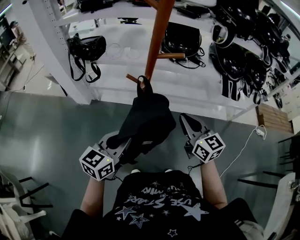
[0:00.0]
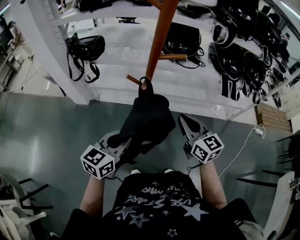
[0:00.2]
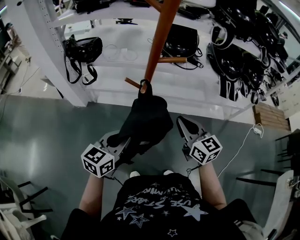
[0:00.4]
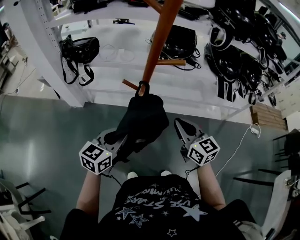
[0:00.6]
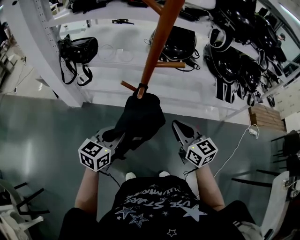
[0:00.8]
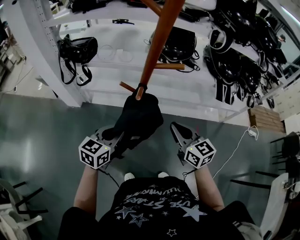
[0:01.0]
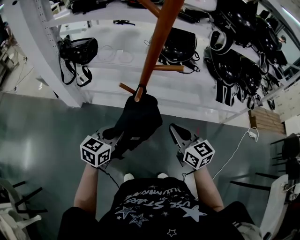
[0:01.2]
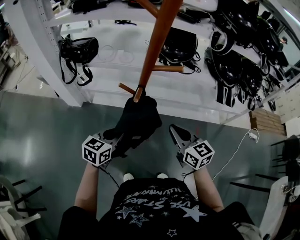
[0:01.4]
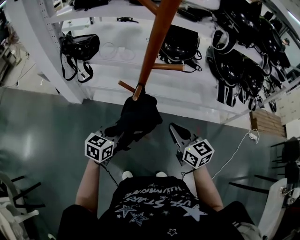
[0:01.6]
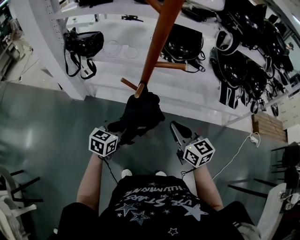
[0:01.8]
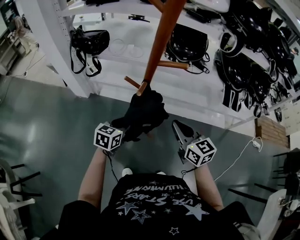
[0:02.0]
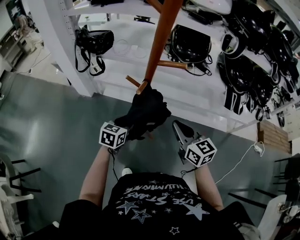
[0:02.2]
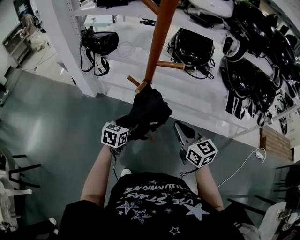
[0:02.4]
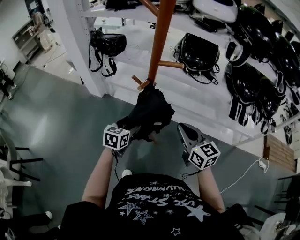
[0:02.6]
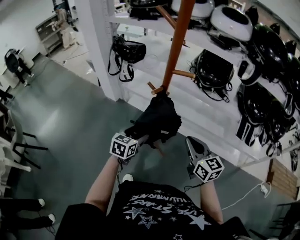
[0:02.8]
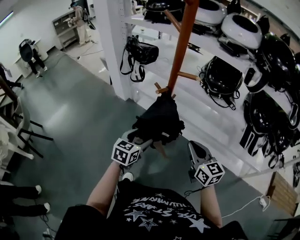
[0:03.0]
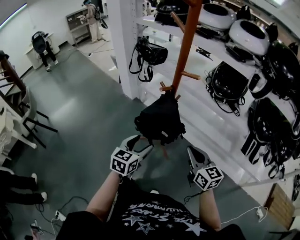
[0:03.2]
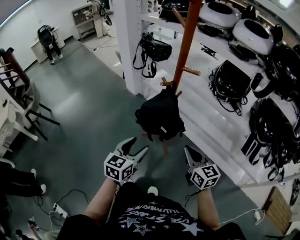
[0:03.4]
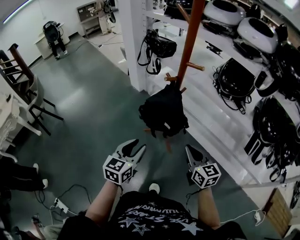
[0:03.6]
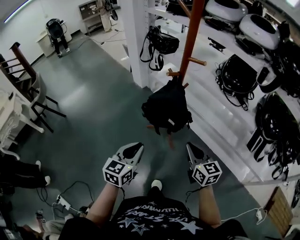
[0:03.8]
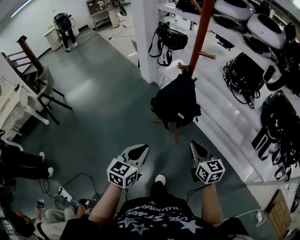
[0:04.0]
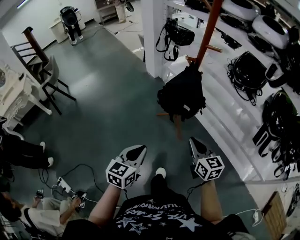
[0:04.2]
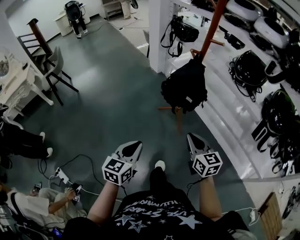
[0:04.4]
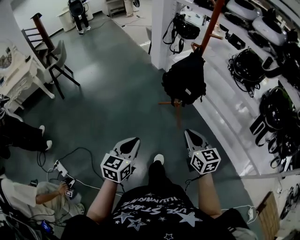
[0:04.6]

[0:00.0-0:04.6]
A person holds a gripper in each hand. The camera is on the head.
0:00.0 to 0:01.6: The left gripper is displaced downward and forward by roughly 15 cm, while the right gripper ends up approximately 5 cm from where it was.
0:01.6 to 0:03.0: The left gripper is displaced backward and to the right by about 10 cm, rotates approximately 30 degrees, and opens up. Meanwhile the right gripper shifts roughly 5 cm to the right.
0:03.0 to 0:04.6: The left gripper moves backward, about 40 cm, changes its angle by about 30 degrees, and closes its fingers, while the right gripper travels backward by some 25 cm, and rotates some 20 degrees.

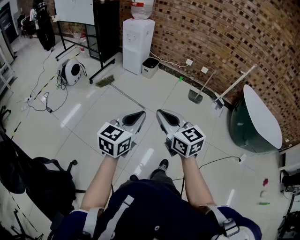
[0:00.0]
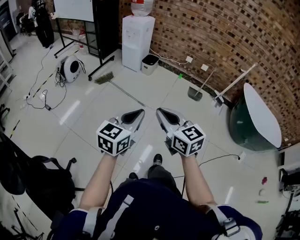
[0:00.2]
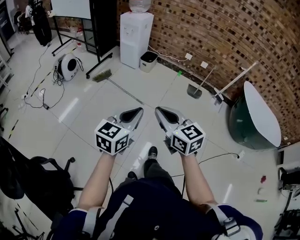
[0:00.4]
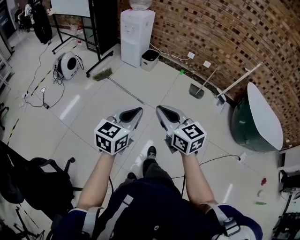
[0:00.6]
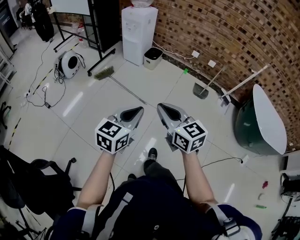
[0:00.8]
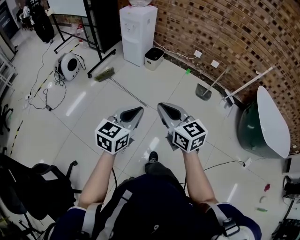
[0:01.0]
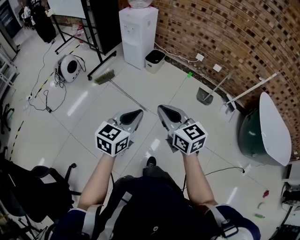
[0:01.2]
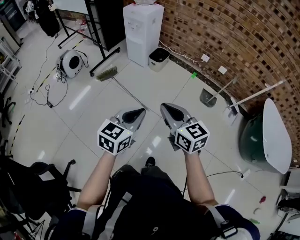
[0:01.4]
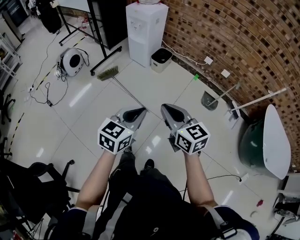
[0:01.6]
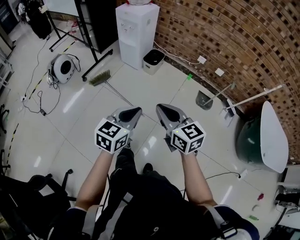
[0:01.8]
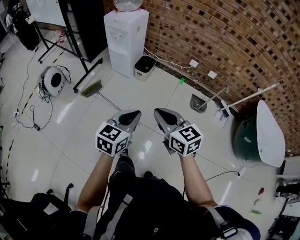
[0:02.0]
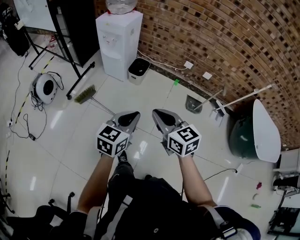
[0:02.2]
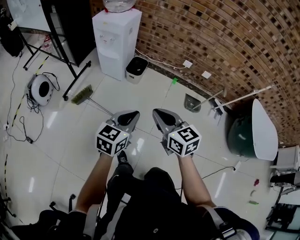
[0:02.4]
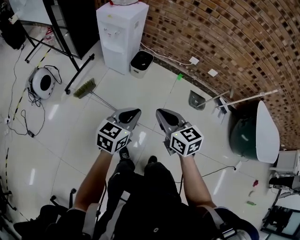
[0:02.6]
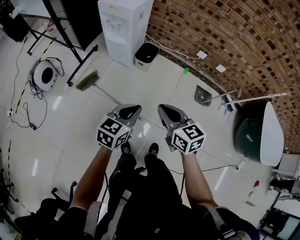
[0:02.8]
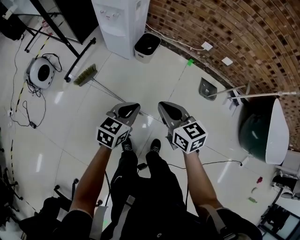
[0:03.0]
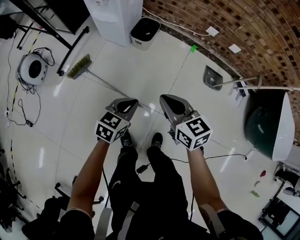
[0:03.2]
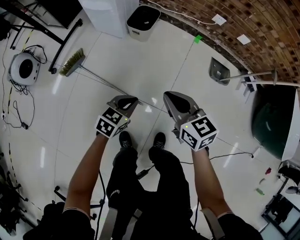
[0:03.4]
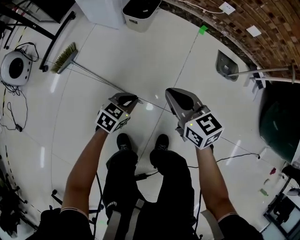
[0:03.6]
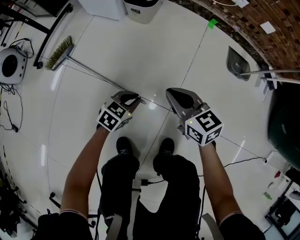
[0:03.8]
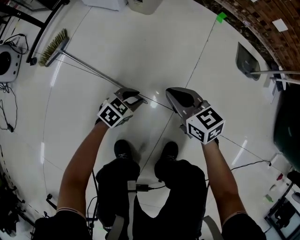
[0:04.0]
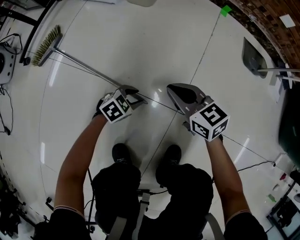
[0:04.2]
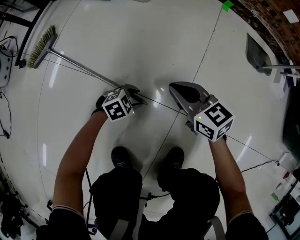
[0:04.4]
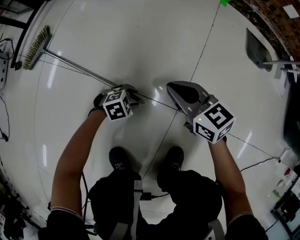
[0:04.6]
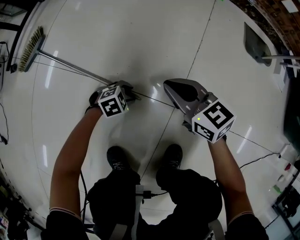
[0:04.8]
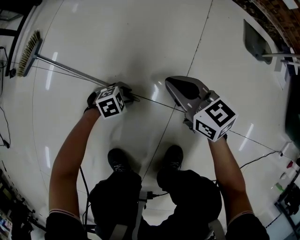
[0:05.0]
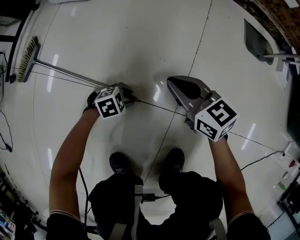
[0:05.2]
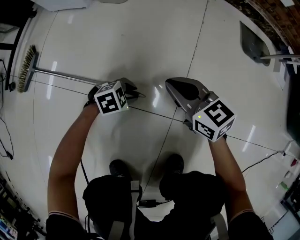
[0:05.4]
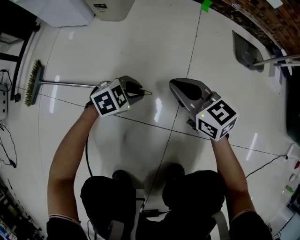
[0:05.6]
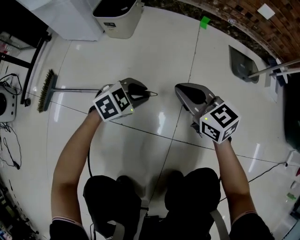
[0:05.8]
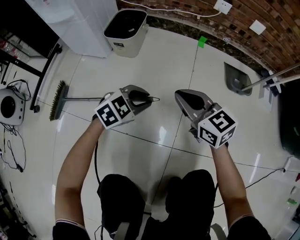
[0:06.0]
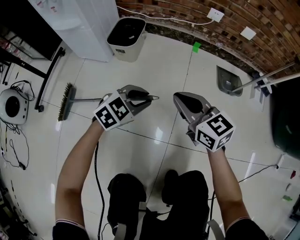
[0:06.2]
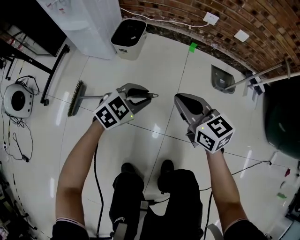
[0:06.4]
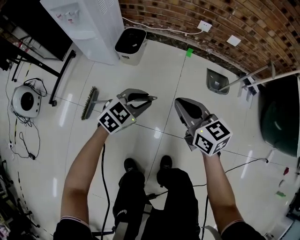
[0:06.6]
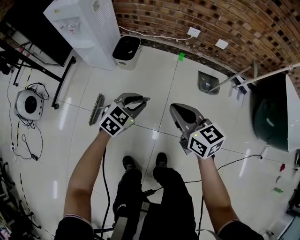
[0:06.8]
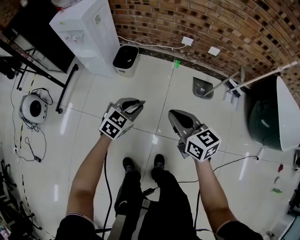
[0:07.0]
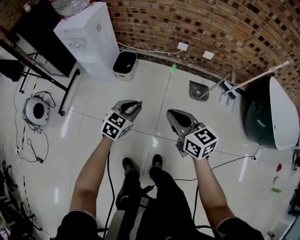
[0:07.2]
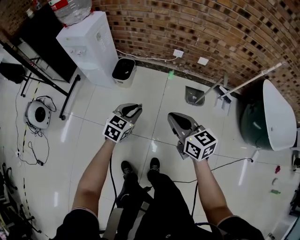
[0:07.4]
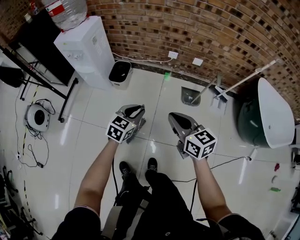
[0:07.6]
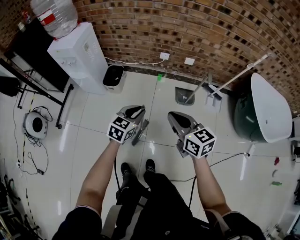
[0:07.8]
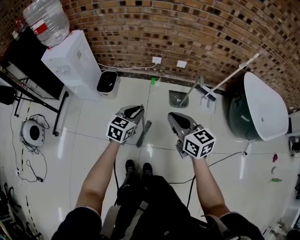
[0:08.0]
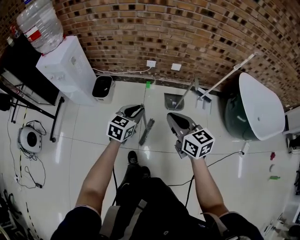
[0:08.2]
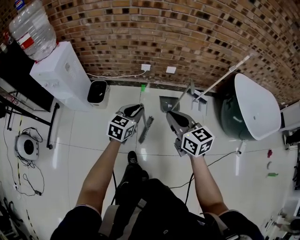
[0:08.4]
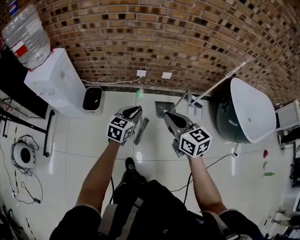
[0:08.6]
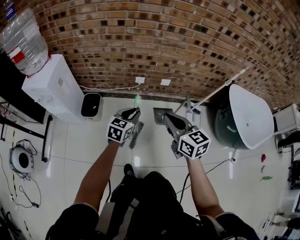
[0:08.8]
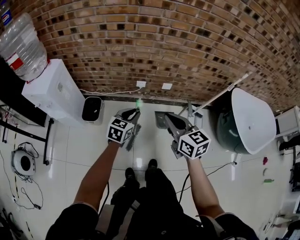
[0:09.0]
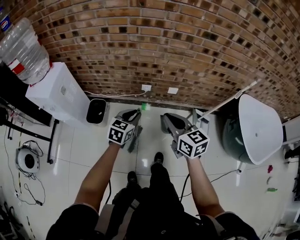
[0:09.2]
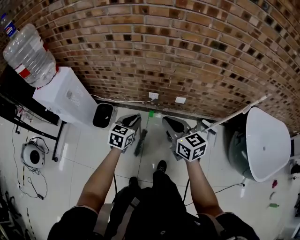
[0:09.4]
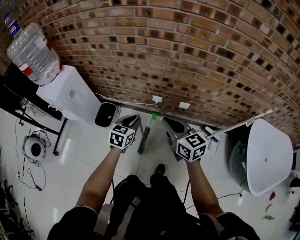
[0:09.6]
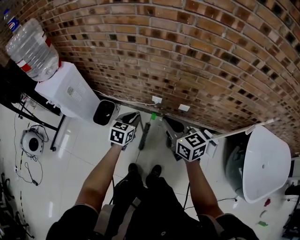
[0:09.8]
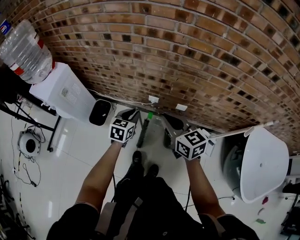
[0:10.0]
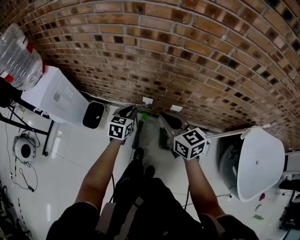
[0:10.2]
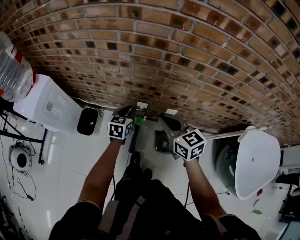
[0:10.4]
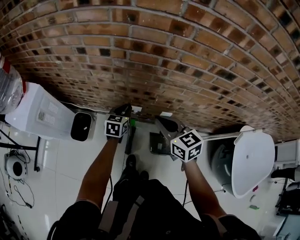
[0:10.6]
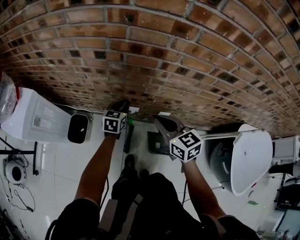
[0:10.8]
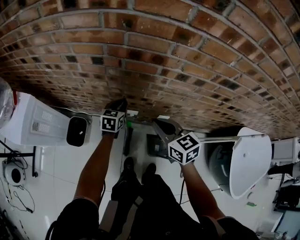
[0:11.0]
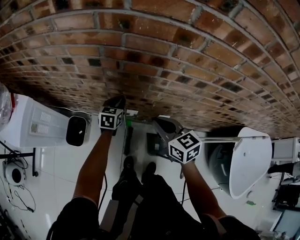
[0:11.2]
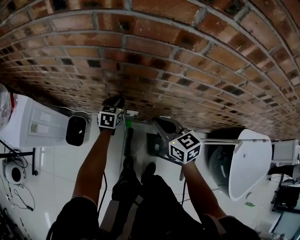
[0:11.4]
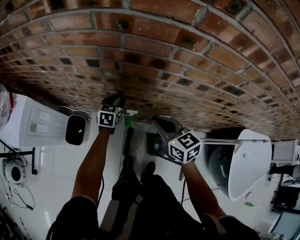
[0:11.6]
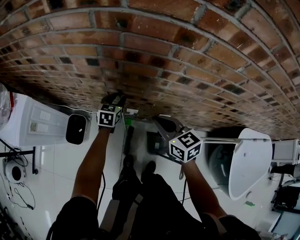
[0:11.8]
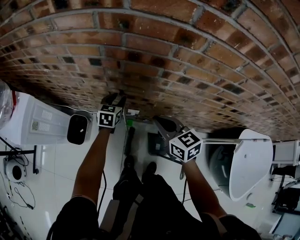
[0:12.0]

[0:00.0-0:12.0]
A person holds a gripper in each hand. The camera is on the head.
0:00.0 to 0:01.6: The two grippers go roughly 30 cm forward.
0:01.6 to 0:03.0: The grippers both shift forward and downward by approximately 30 cm.
0:03.0 to 0:04.4: The grippers both shift downward by approximately 60 cm. The left gripper swivels approximately 50 degrees, and opens its fingers.
0:04.4 to 0:06.0: The left gripper moves upward, about 25 cm, turns by some 20 degrees, and closes up, while the right gripper is displaced upward by roughly 15 cm.
0:06.0 to 0:07.6: Both grippers travel together upward, roughly 50 cm. The left gripper rotates some 30 degrees.
0:07.6 to 0:09.0: Both grippers travel together forward, approximately 20 cm.
0:09.0 to 0:10.4: Both grippers move forward, some 25 cm. The left gripper swivels approximately 20 degrees.
0:10.4 to 0:12.0: The right gripper goes some 10 cm forward. Meanwhile the left gripper goes some 15 cm forward, and opens.

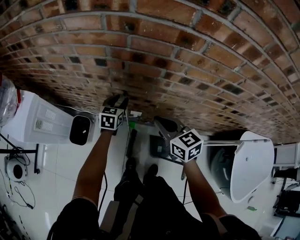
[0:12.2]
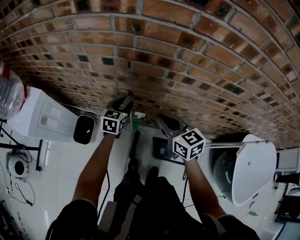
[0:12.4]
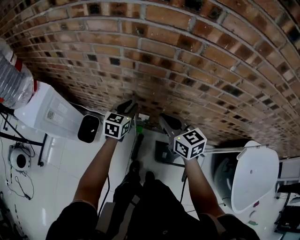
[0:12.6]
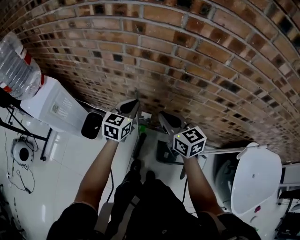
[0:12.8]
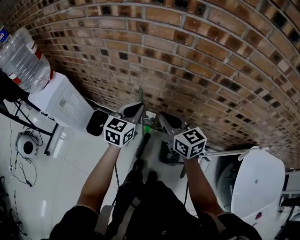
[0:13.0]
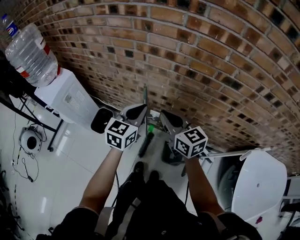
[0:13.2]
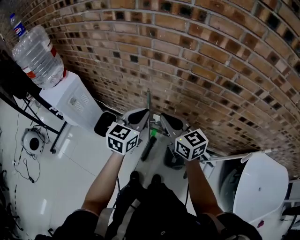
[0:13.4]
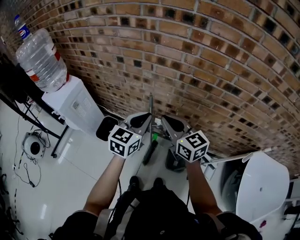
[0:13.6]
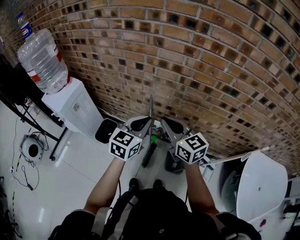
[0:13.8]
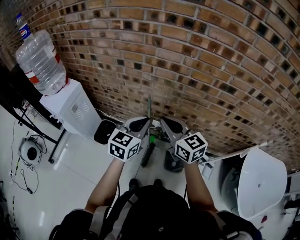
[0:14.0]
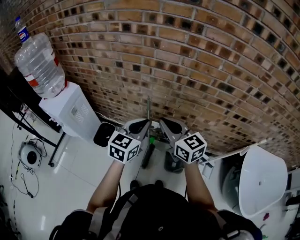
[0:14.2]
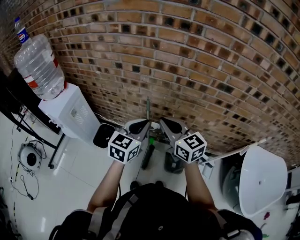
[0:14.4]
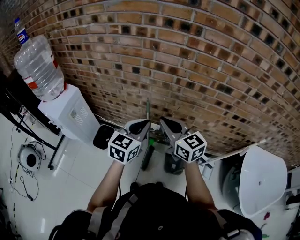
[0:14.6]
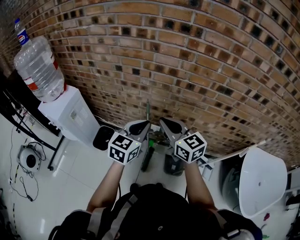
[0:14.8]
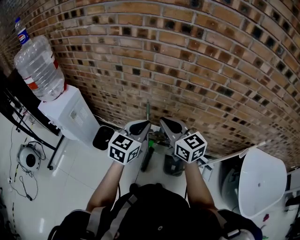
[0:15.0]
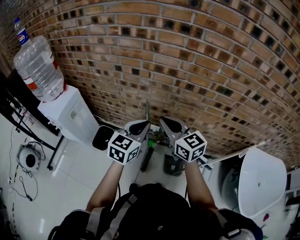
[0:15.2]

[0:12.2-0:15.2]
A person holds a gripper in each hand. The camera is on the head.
0:12.2 to 0:13.8: The left gripper shifts approximately 30 cm backward and upward, and closes. The right gripper goes approximately 15 cm upward, backward and to the left, and changes its angle by about 20 degrees.
0:13.8 to 0:15.2: The grippers make only small movements.

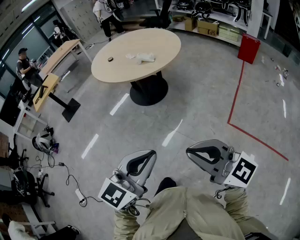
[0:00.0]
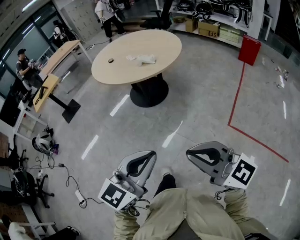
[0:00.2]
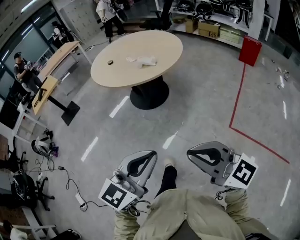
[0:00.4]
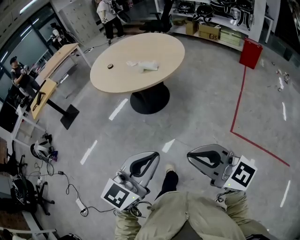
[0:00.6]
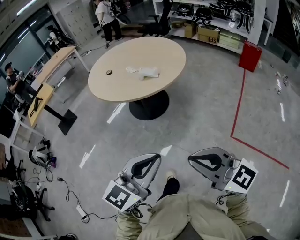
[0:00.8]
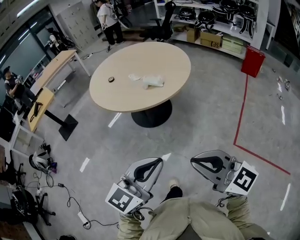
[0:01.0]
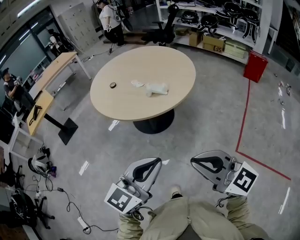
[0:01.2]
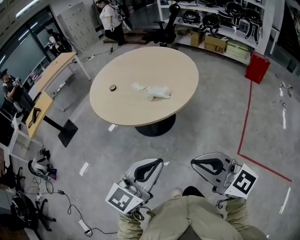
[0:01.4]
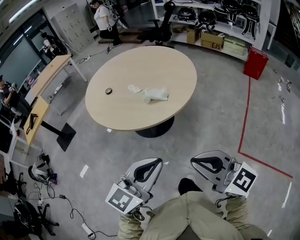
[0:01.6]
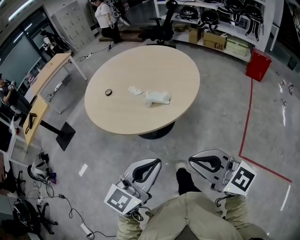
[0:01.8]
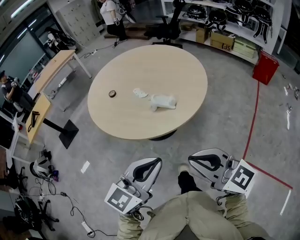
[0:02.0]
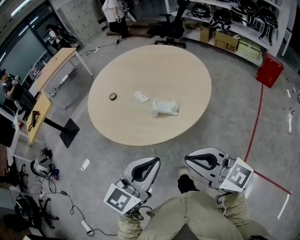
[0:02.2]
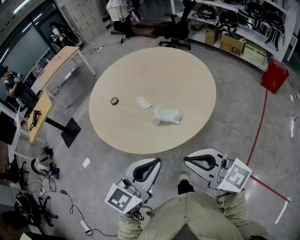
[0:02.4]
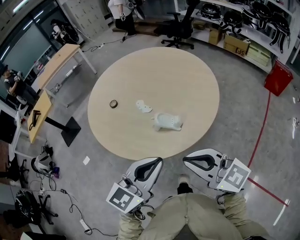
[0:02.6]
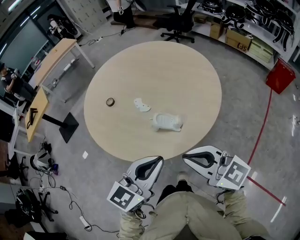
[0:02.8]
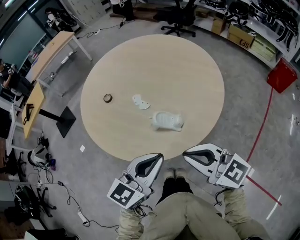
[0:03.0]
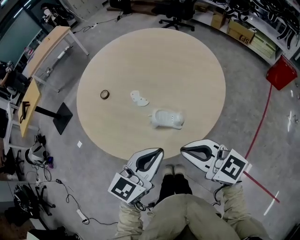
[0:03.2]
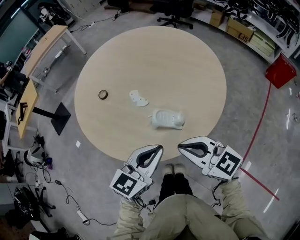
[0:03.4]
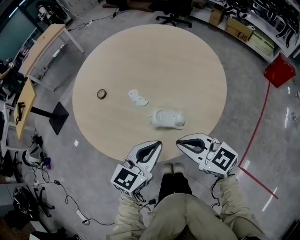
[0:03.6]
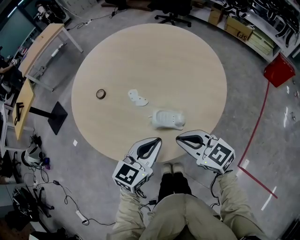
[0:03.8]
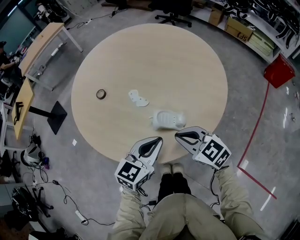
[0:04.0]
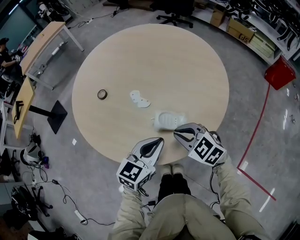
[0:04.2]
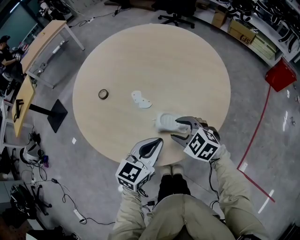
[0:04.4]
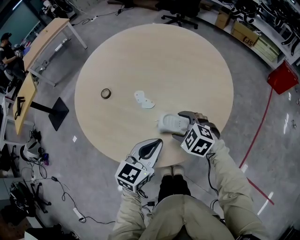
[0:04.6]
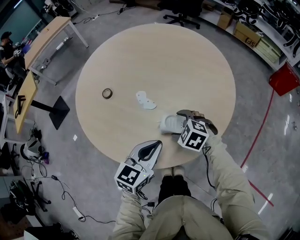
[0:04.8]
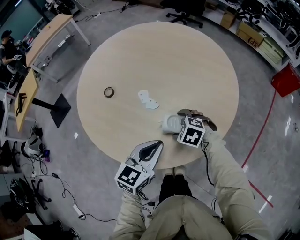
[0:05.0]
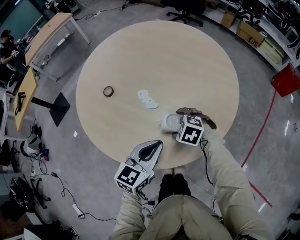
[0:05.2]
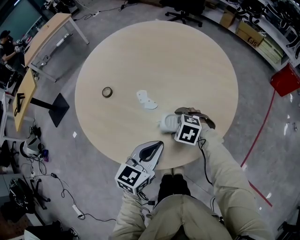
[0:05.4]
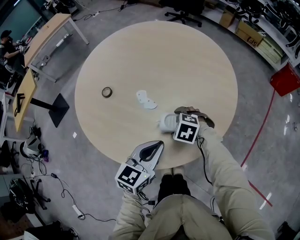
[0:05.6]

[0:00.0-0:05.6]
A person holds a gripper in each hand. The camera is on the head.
0:00.0 to 0:01.4: The grippers both shift forward by some 30 cm.
0:01.4 to 0:02.8: The two grippers go some 30 cm forward.
0:02.8 to 0:04.2: Both grippers travel together downward and forward, about 20 cm. The right gripper tilts its fingers approximately 30 degrees downward.
0:04.2 to 0:05.6: The right gripper goes about 10 cm downward and forward, turns by roughly 30 degrees, and opens its fingers.
